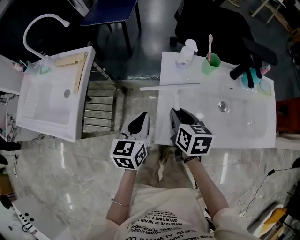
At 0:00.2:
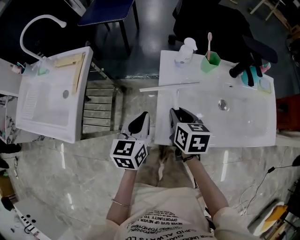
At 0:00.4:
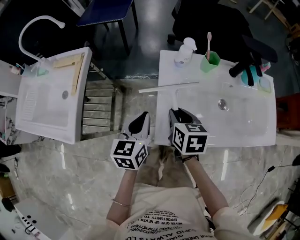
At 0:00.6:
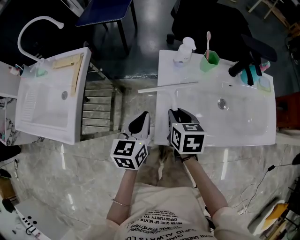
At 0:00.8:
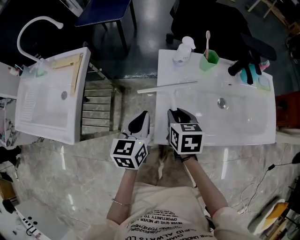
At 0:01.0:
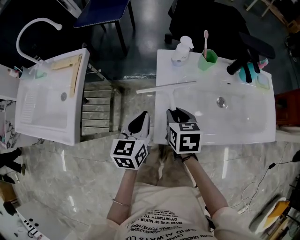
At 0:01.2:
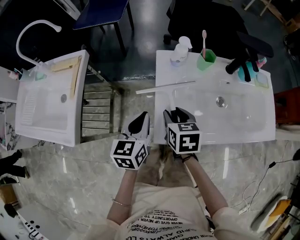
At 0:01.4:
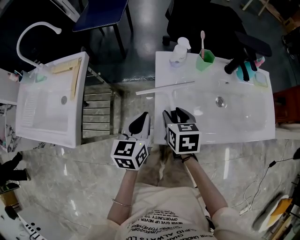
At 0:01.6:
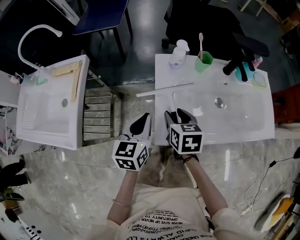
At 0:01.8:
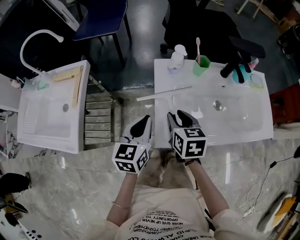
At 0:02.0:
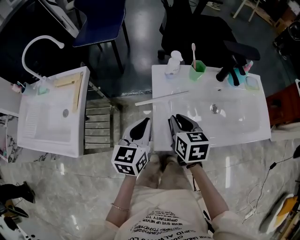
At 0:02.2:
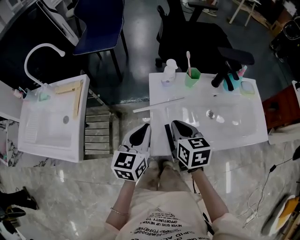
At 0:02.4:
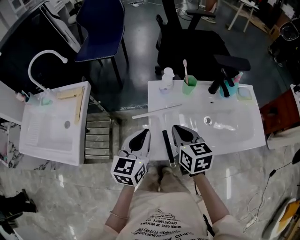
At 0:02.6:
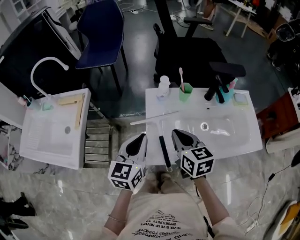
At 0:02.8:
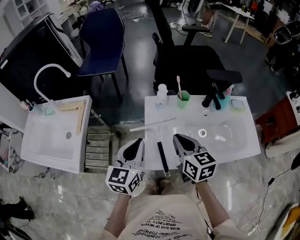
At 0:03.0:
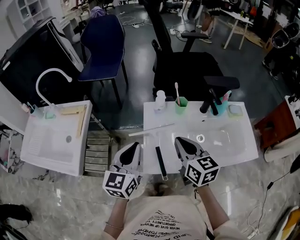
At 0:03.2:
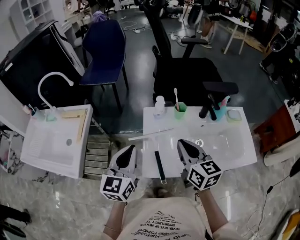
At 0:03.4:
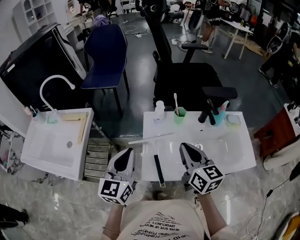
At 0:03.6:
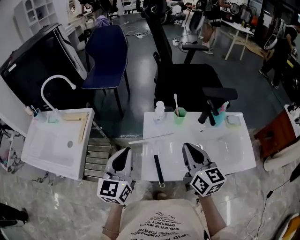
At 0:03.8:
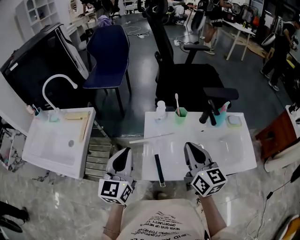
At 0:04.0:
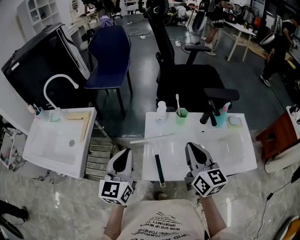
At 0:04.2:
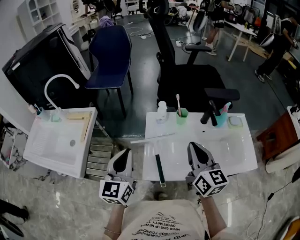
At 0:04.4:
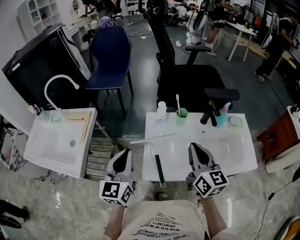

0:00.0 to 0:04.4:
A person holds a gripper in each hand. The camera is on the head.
0:00.0 to 0:01.4: The grippers move only a little.
0:01.4 to 0:03.0: The right gripper shifts about 15 cm upward and to the right, changes its angle by approximately 30 degrees, and closes up, while the left gripper heads upward, covering some 15 cm.
0:03.0 to 0:04.4: The right gripper goes about 5 cm to the right.

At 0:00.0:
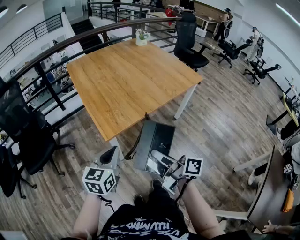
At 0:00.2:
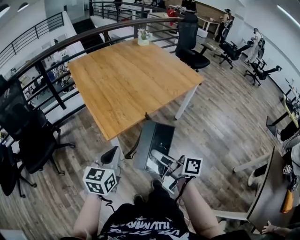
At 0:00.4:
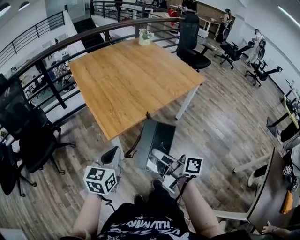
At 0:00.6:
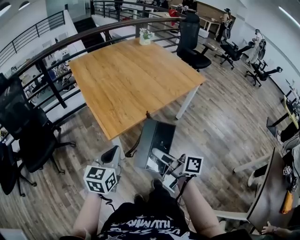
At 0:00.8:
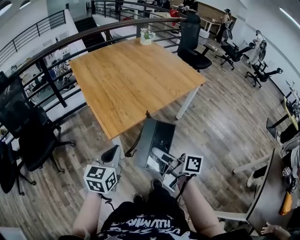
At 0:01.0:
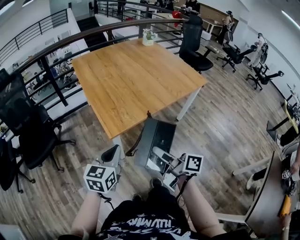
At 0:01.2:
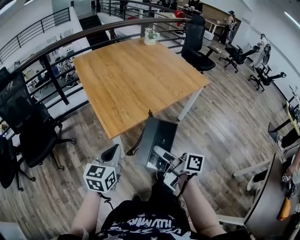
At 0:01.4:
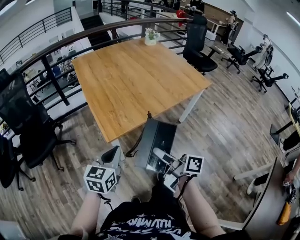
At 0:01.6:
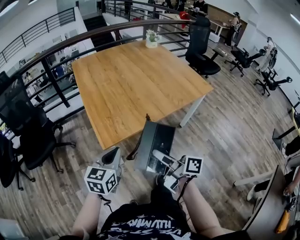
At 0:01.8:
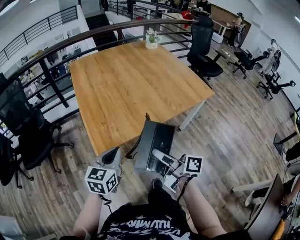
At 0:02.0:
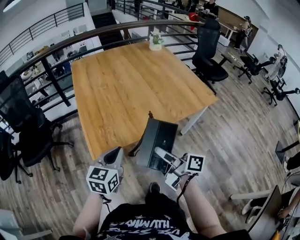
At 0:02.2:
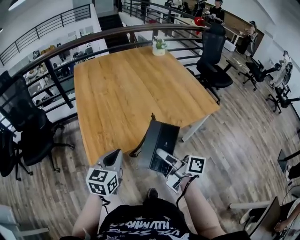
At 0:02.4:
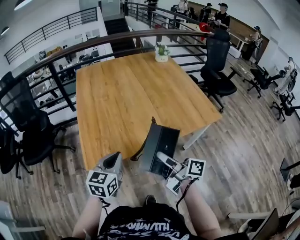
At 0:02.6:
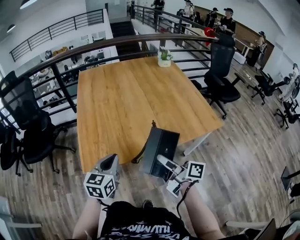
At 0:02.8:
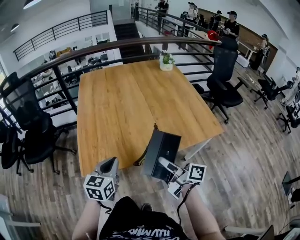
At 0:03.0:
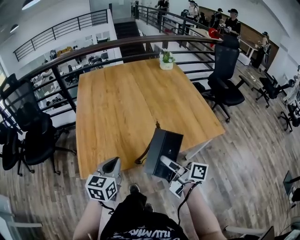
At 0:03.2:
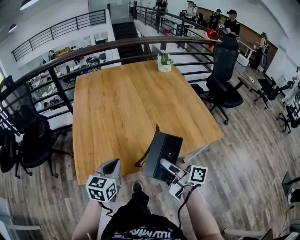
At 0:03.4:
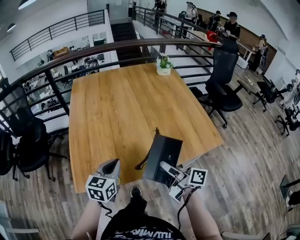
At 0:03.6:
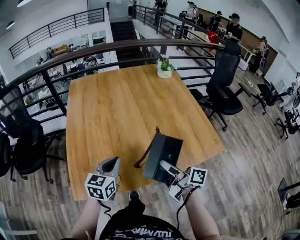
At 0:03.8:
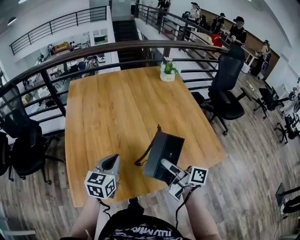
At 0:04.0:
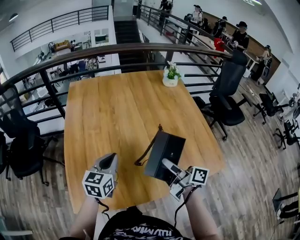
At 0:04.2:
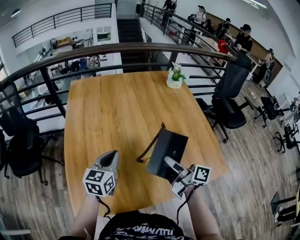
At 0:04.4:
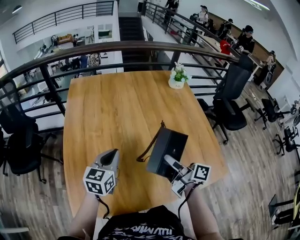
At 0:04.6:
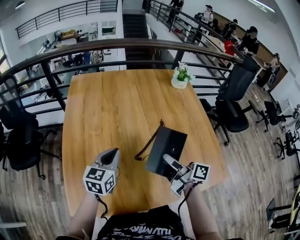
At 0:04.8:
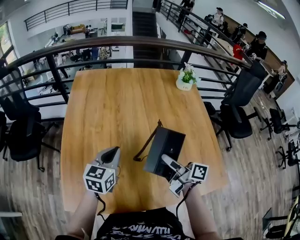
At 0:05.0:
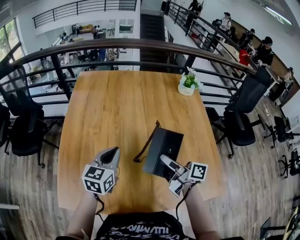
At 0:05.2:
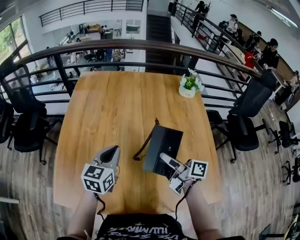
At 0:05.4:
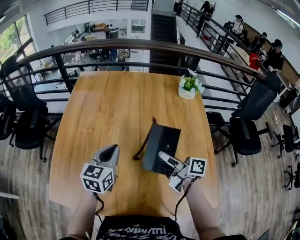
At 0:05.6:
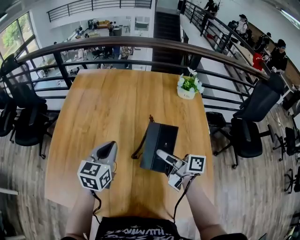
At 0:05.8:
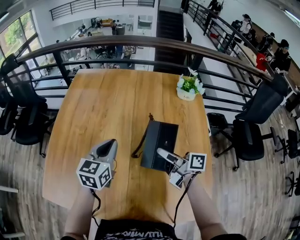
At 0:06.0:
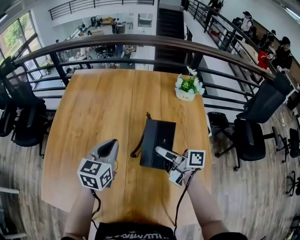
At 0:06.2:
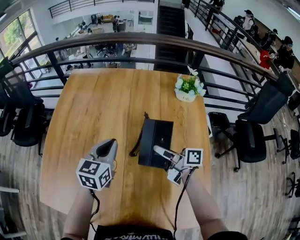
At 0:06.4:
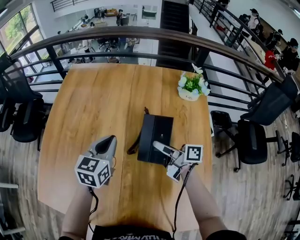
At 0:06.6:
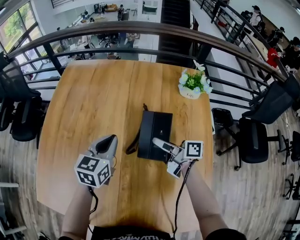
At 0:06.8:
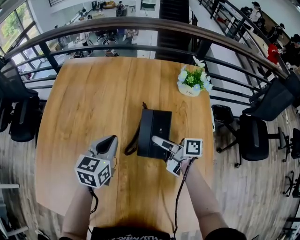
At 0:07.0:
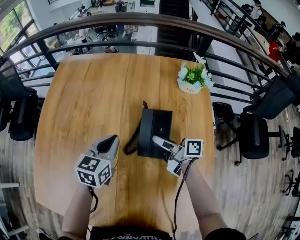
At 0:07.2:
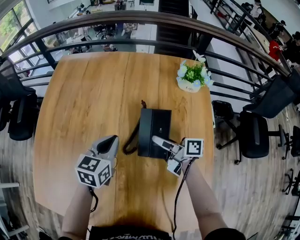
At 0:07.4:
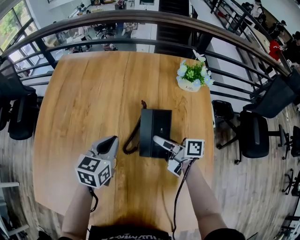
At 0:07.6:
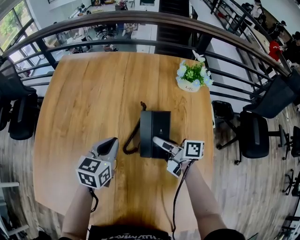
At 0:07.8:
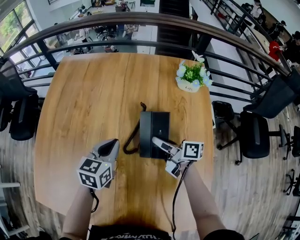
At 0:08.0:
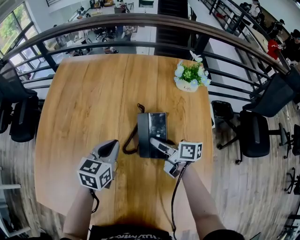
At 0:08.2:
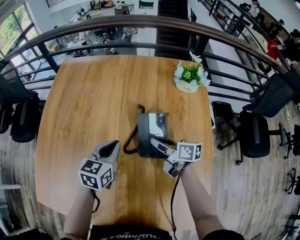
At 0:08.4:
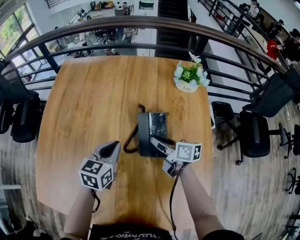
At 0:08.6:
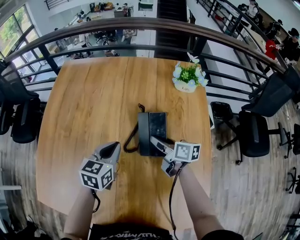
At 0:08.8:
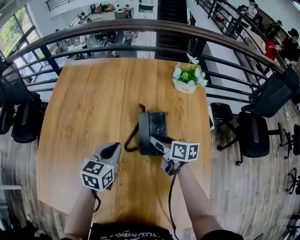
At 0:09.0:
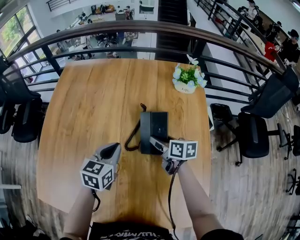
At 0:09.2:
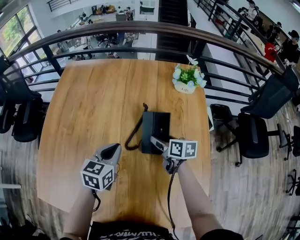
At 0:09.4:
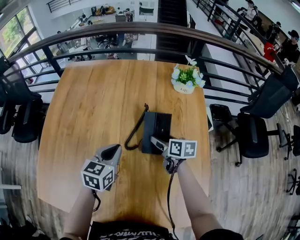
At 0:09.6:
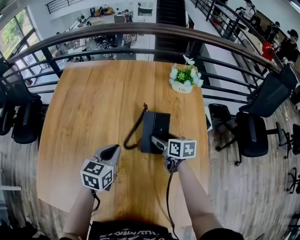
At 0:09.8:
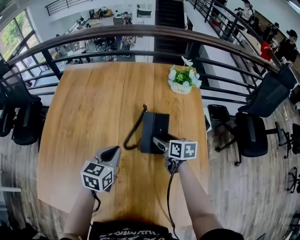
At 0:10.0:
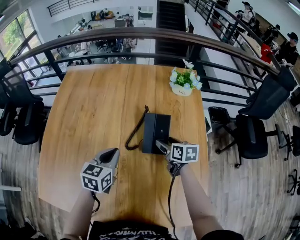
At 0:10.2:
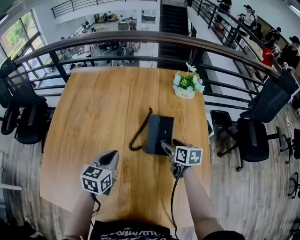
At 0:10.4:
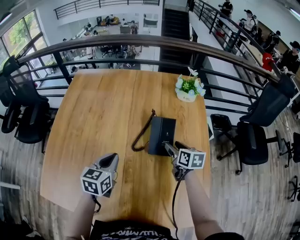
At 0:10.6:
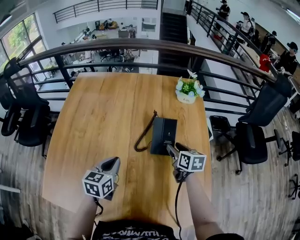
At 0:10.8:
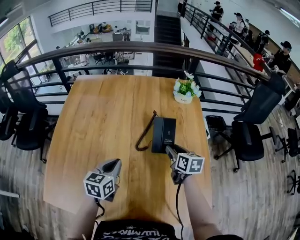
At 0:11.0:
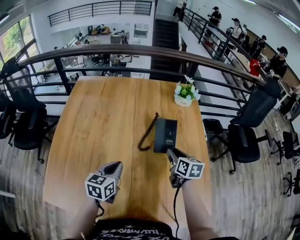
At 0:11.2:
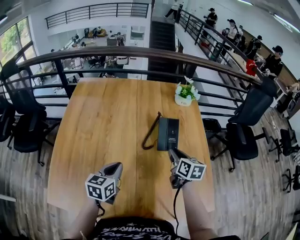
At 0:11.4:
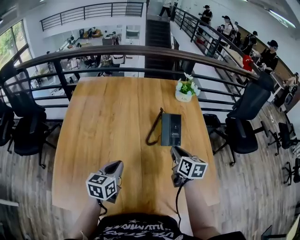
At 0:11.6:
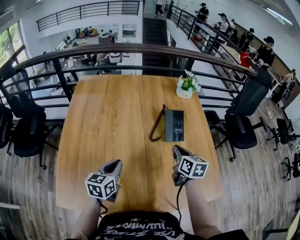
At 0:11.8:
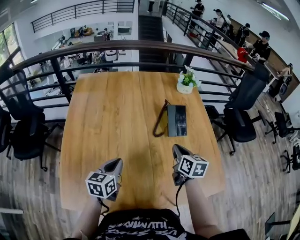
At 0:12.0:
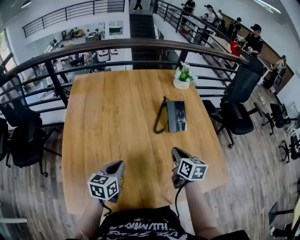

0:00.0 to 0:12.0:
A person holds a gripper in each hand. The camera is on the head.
0:00.0 to 0:01.6: Both grippers move forward, roughly 10 cm.
0:01.6 to 0:03.0: The grippers both shift to the right and forward by approximately 30 cm.
0:03.0 to 0:04.4: Both grippers move forward, some 30 cm.
0:04.4 to 0:06.0: The grippers both shift to the right and forward by roughly 25 cm. The right gripper changes its angle by roughly 30 degrees.
0:06.0 to 0:07.6: The left gripper moves downward and to the right, approximately 10 cm; the right gripper travels downward, forward and to the right by roughly 15 cm.
0:07.6 to 0:09.0: The right gripper turns by some 30 degrees, and opens its fingers.
0:09.0 to 0:10.4: The right gripper shifts roughly 5 cm to the right. Meanwhile the left gripper is displaced backward by some 5 cm.
0:10.4 to 0:12.0: The left gripper is displaced to the left and backward by about 20 cm, while the right gripper goes some 25 cm backward and to the left, changes its angle by roughly 20 degrees, and closes up.

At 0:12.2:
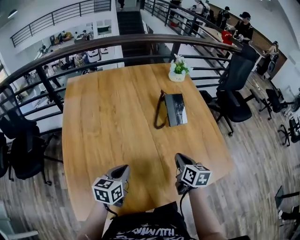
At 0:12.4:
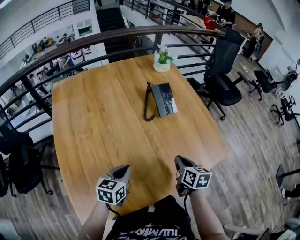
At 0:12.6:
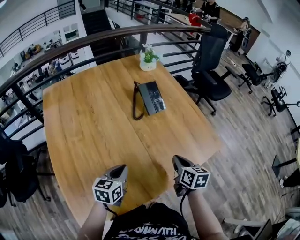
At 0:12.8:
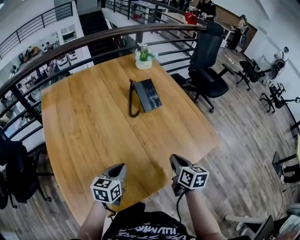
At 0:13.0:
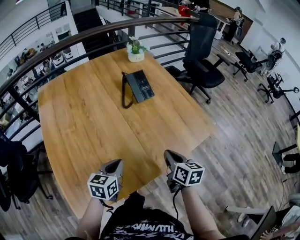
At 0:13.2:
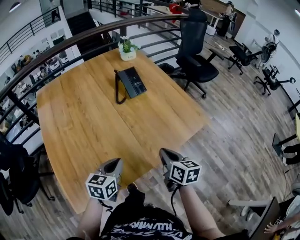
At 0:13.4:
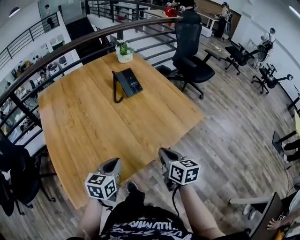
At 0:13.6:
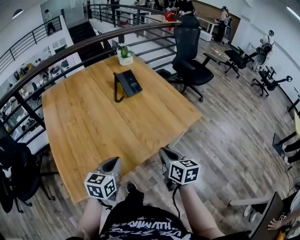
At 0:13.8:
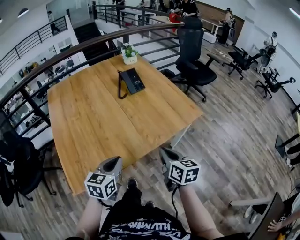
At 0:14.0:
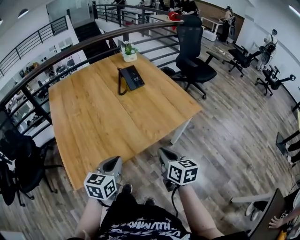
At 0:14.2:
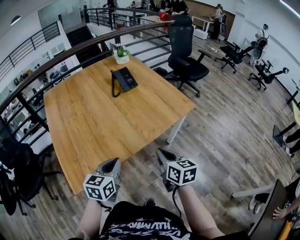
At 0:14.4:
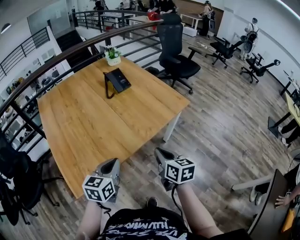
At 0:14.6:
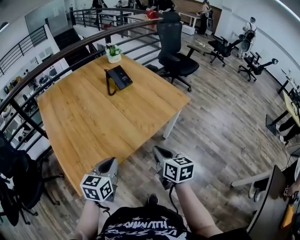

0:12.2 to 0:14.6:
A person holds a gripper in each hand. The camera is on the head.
0:12.2 to 0:13.4: Both grippers travel together backward and to the right, about 20 cm.
0:13.4 to 0:14.6: Both grippers travel together backward, about 15 cm.

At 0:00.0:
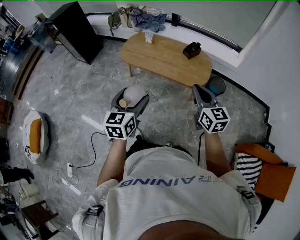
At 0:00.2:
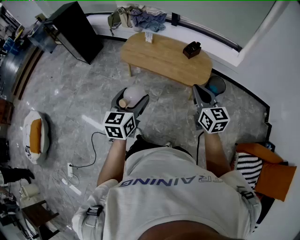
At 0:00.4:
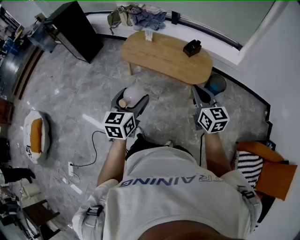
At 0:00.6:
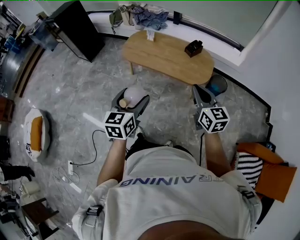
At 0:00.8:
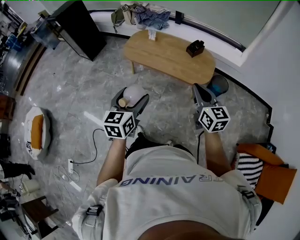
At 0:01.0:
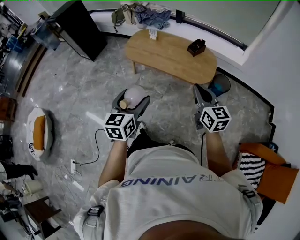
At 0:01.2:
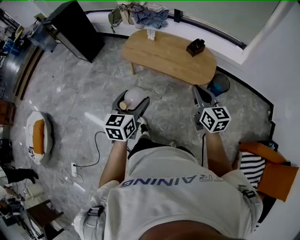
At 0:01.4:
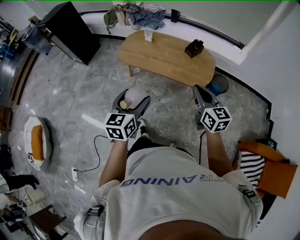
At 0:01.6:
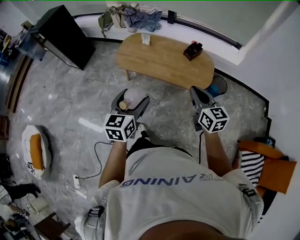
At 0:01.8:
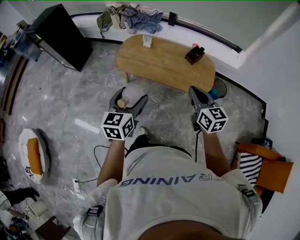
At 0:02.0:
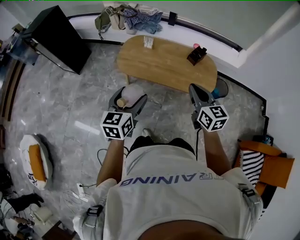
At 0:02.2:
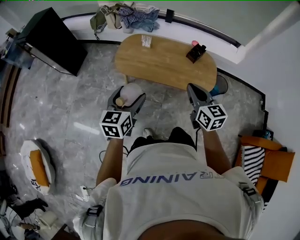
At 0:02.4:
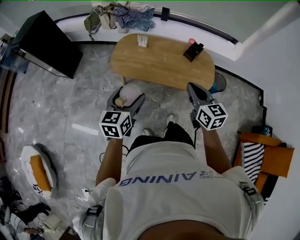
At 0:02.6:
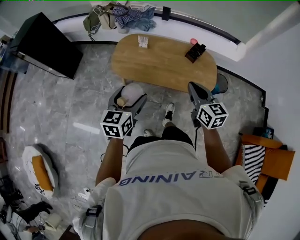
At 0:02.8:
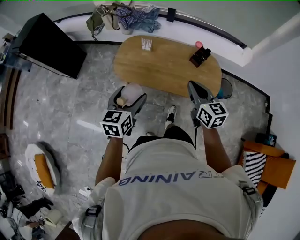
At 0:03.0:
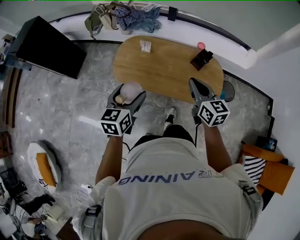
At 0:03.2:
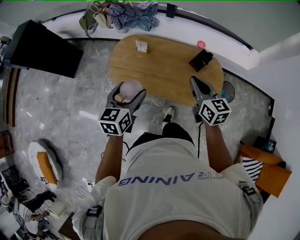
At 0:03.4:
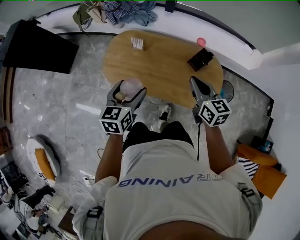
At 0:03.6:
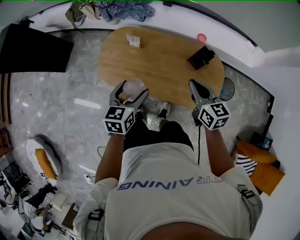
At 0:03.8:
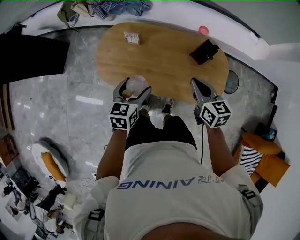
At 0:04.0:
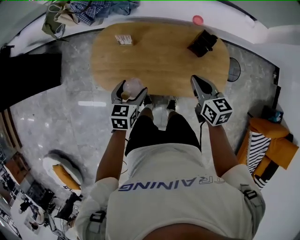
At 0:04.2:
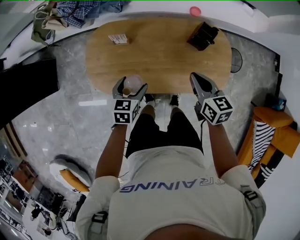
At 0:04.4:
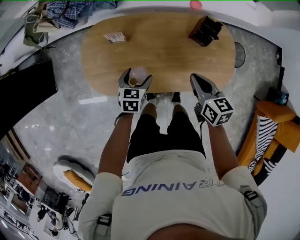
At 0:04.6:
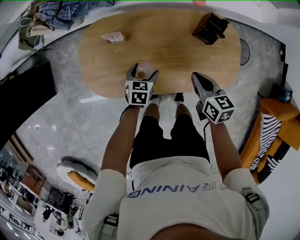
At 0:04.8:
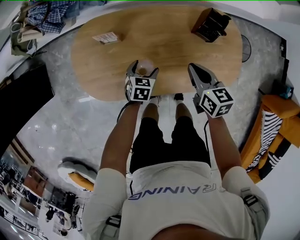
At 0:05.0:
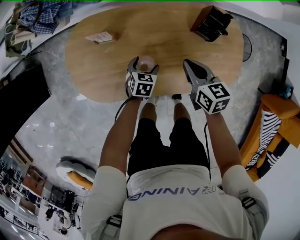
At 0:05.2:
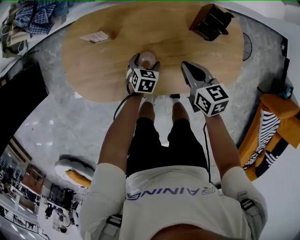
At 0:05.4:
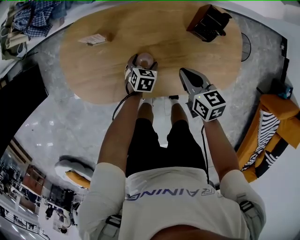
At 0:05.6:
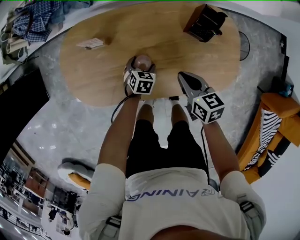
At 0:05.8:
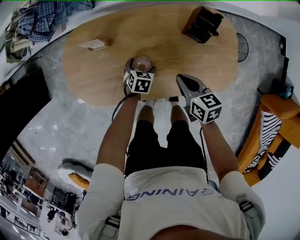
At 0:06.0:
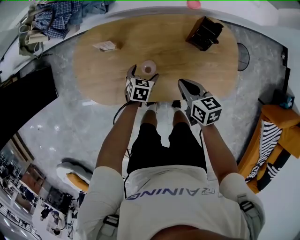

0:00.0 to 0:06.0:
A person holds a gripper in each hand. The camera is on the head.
0:00.0 to 0:01.6: The two grippers go some 15 cm forward and to the left.
0:01.6 to 0:03.0: The two grippers go roughly 30 cm forward.
0:03.0 to 0:04.4: Both grippers travel together downward and forward, some 35 cm. The right gripper changes its angle by roughly 30 degrees; the left gripper rotates about 30 degrees.
0:04.4 to 0:06.0: The right gripper goes roughly 10 cm downward. The left gripper goes roughly 15 cm downward and to the right.
